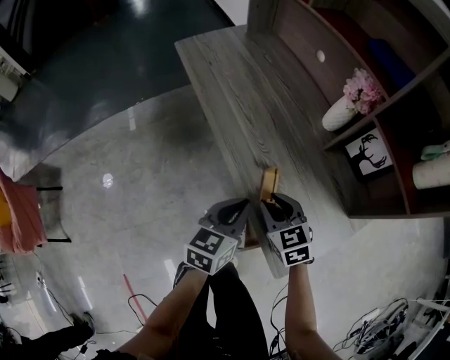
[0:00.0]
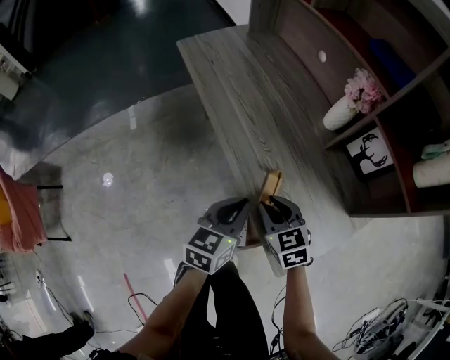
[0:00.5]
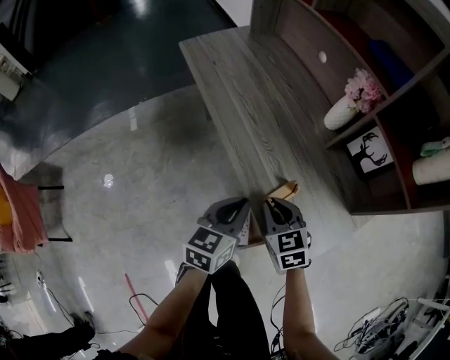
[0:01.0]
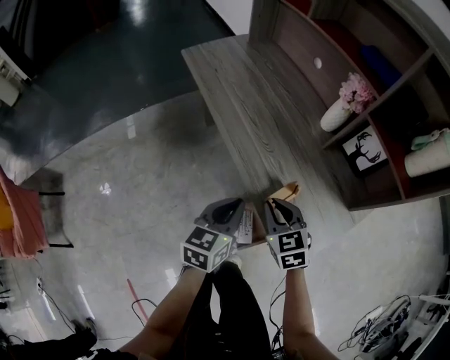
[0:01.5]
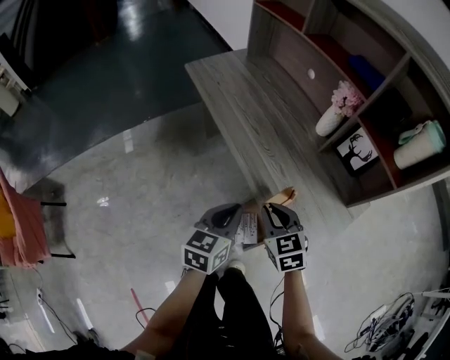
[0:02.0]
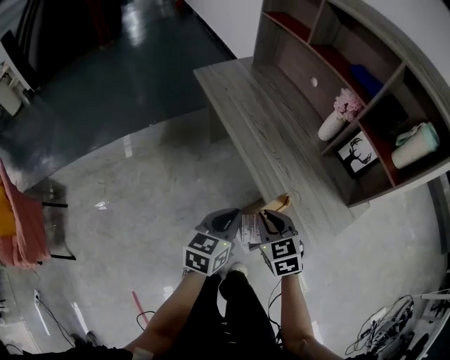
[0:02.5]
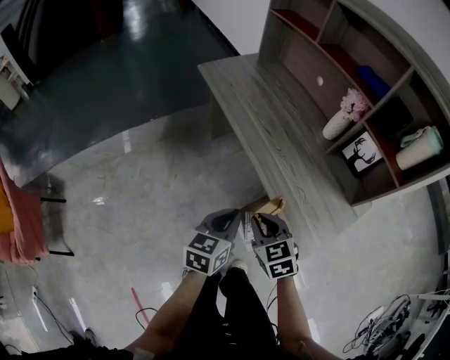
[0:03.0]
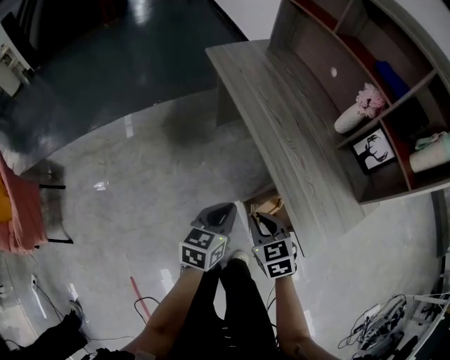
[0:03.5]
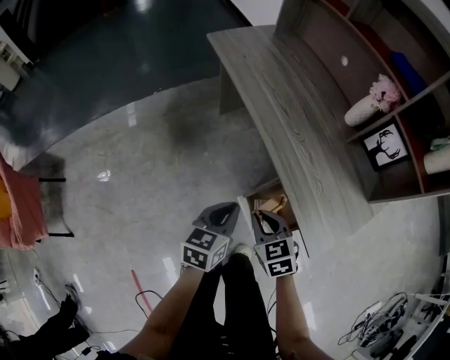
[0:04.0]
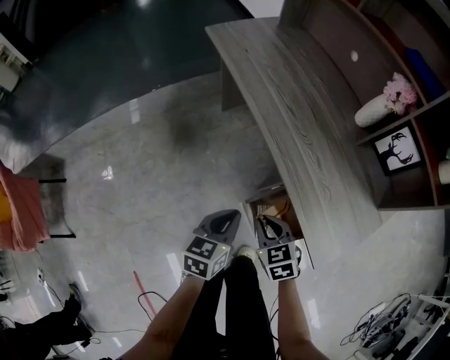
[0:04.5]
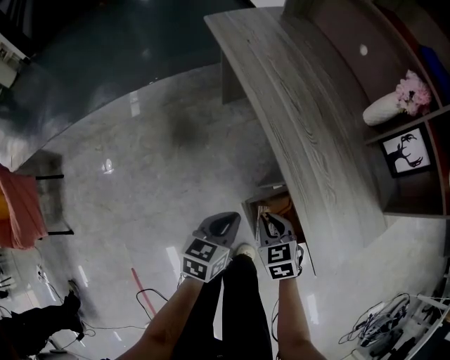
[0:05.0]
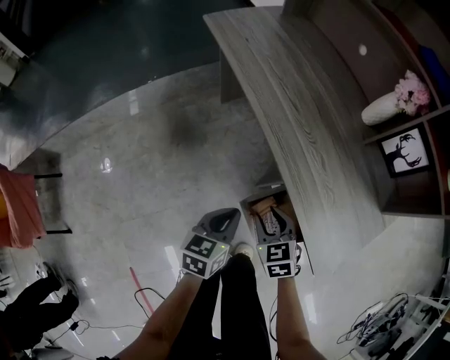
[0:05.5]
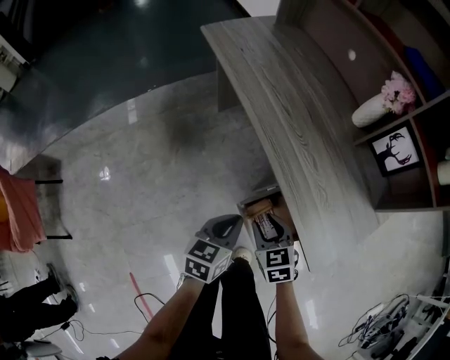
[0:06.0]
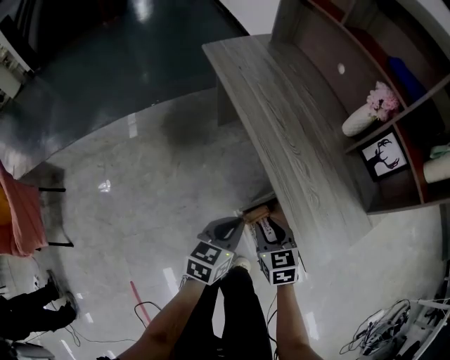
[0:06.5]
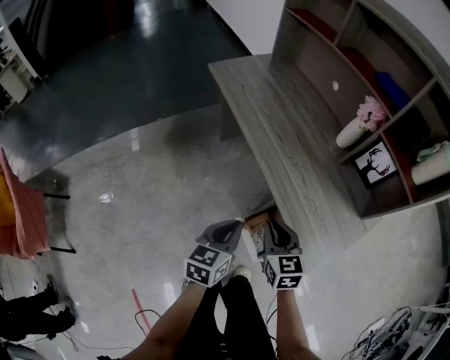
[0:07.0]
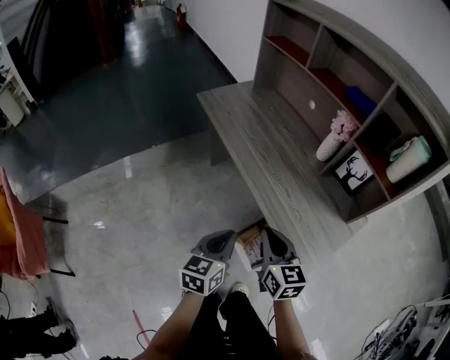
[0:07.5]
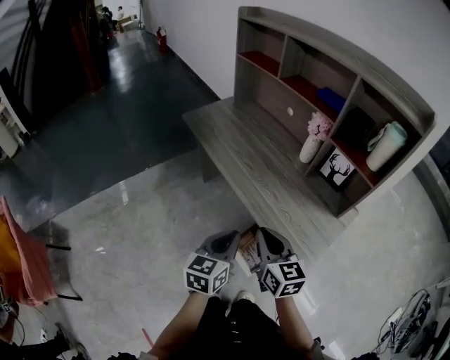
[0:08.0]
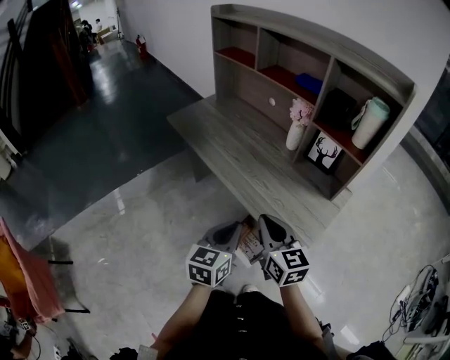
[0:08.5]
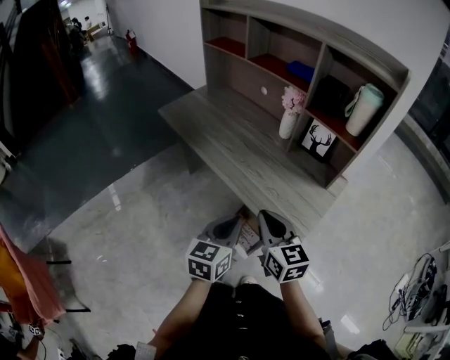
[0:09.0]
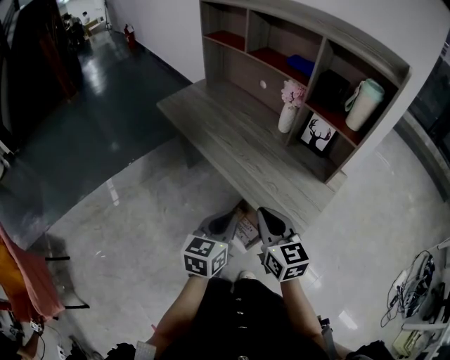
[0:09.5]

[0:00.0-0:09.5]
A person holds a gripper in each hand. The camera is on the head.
0:00.0 to 0:02.0: The right gripper travels upward and backward by some 10 cm, while the left gripper is displaced to the left and backward by about 10 cm.
0:02.0 to 0:04.0: The right gripper is displaced to the left, downward and backward by roughly 15 cm. The left gripper is displaced downward and to the left by roughly 10 cm.
0:04.0 to 0:05.5: Both grippers travel together downward, some 5 cm. The right gripper opens.
0:05.5 to 0:07.5: The grippers both shift upward by some 20 cm. The right gripper changes its angle by about 30 degrees, and closes.
0:07.5 to 0:09.5: The right gripper shifts by roughly 10 cm. The left gripper shifts roughly 5 cm to the right.

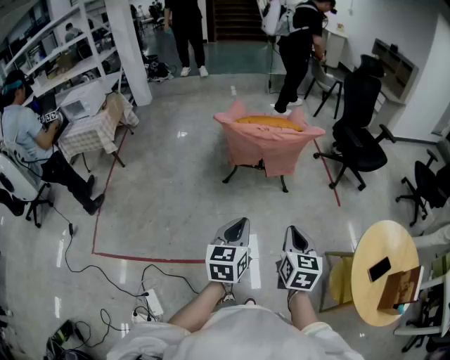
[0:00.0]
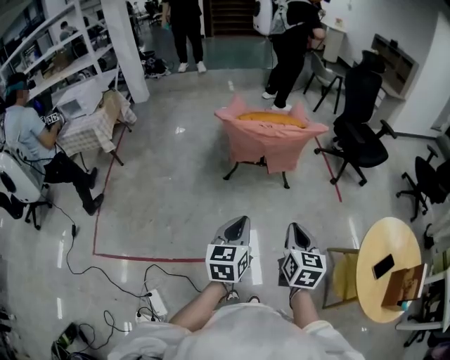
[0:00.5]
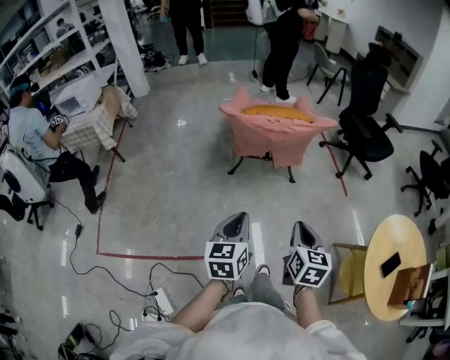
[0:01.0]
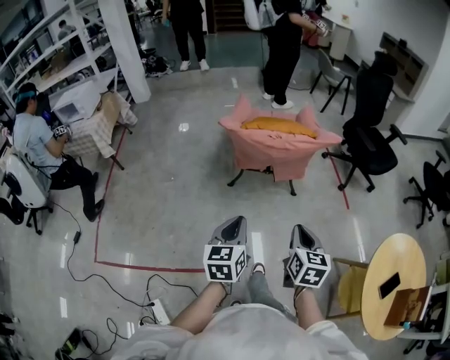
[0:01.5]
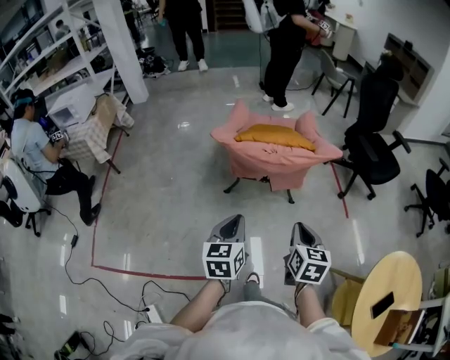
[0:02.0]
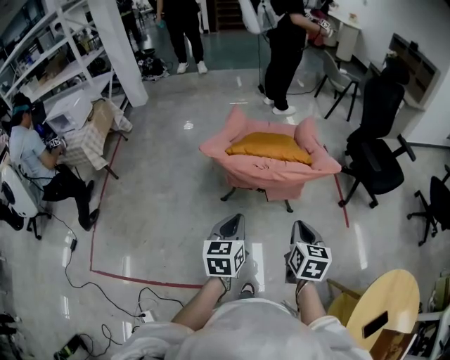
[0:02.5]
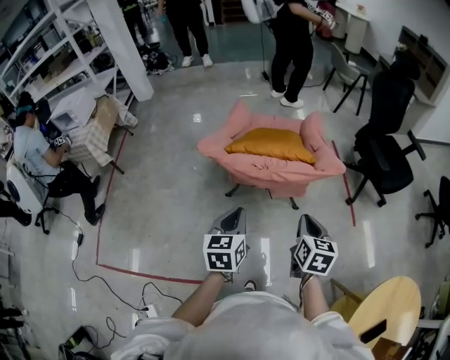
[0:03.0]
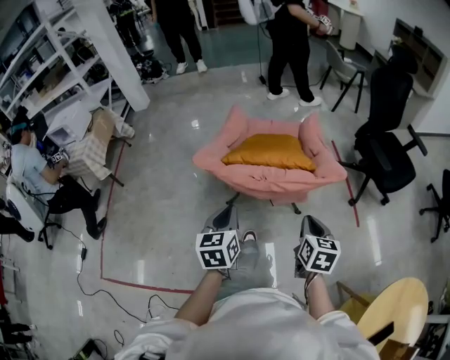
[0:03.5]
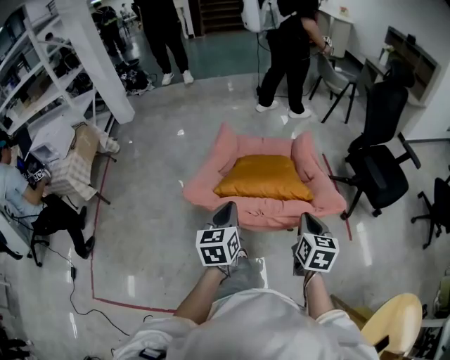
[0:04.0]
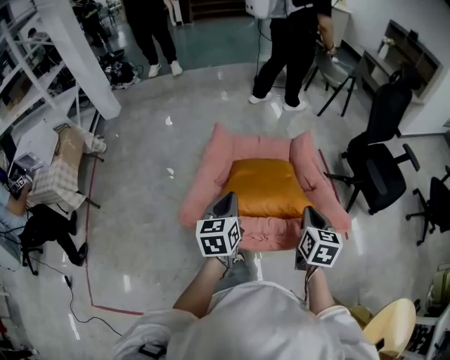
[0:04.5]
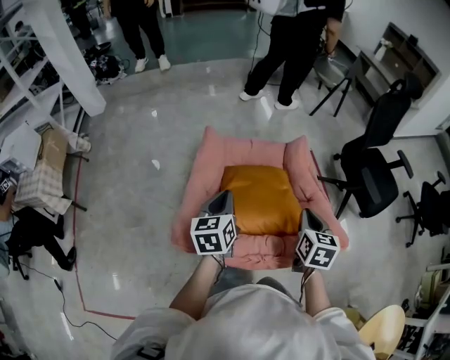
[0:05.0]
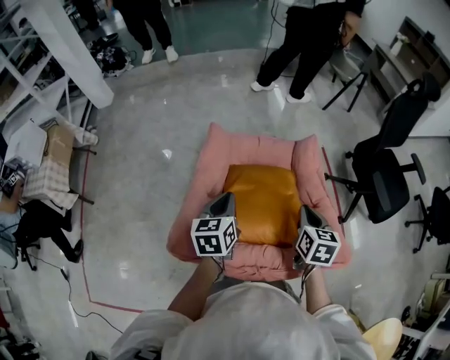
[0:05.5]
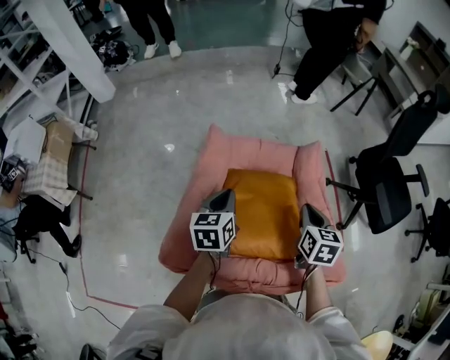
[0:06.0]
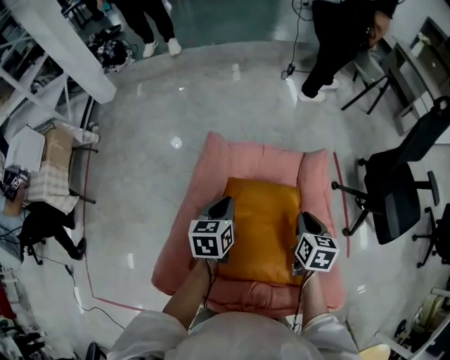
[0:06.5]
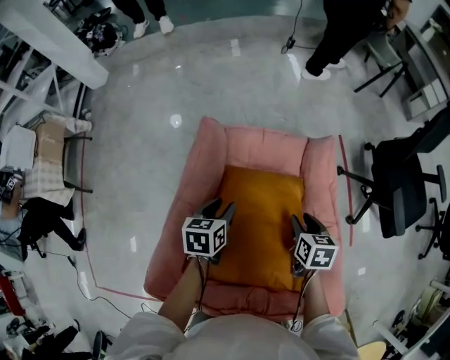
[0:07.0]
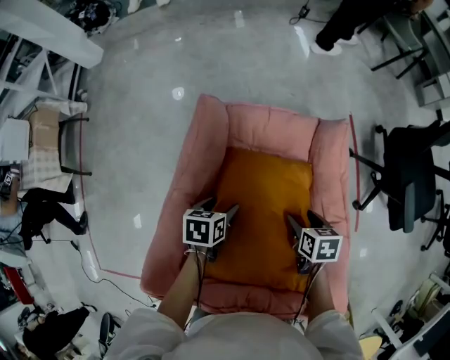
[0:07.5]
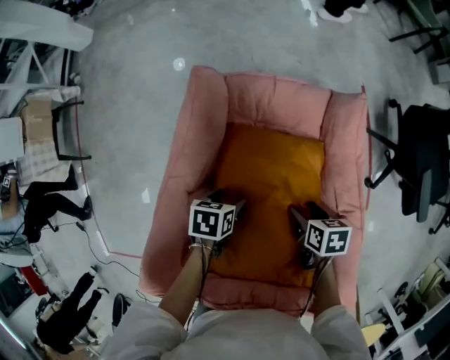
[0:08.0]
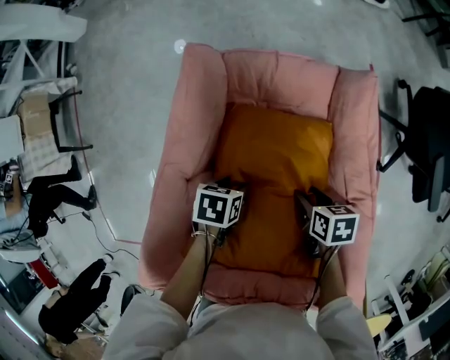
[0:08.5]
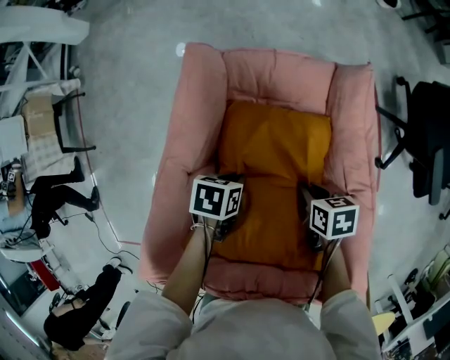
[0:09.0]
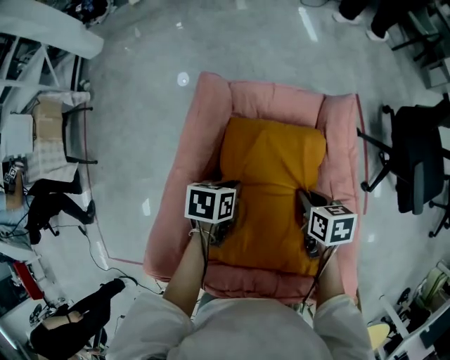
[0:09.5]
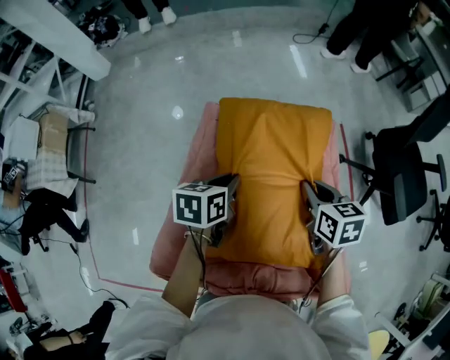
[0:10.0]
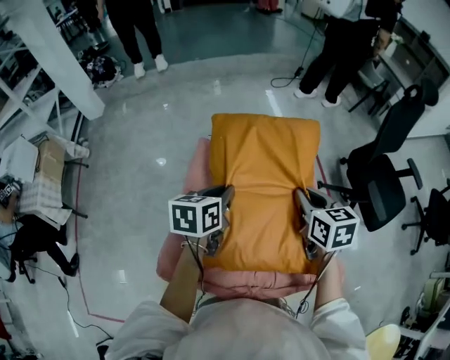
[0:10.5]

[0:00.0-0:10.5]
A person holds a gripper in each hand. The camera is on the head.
0:00.0 to 0:02.0: The two grippers go approximately 20 cm forward.
0:02.0 to 0:04.0: The two grippers go approximately 30 cm forward.
0:04.0 to 0:06.5: Both grippers travel together forward, some 35 cm.
0:06.5 to 0:08.5: The two grippers go approximately 20 cm downward. The left gripper points its fingers roughly 30 degrees further downward, and opens its fingers; the right gripper swivels some 40 degrees, and opens up.
0:08.5 to 0:10.5: Both grippers travel together upward, some 35 cm. The right gripper changes its angle by approximately 40 degrees, and closes, while the left gripper angles its fingers upward, by approximately 40 degrees, and closes its fingers.

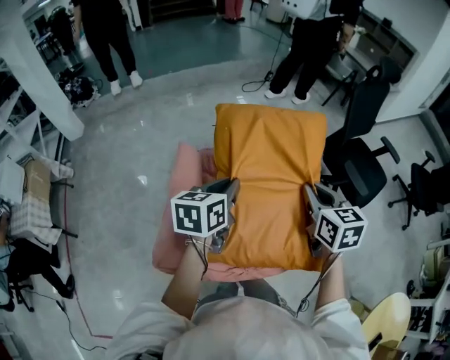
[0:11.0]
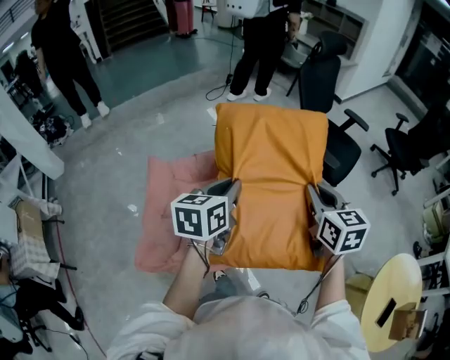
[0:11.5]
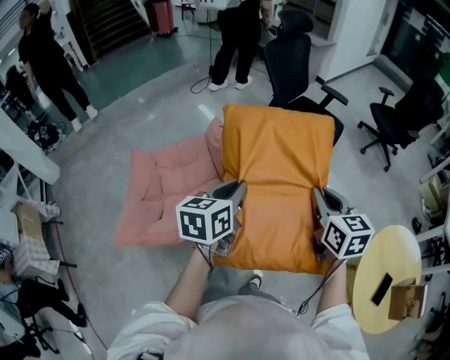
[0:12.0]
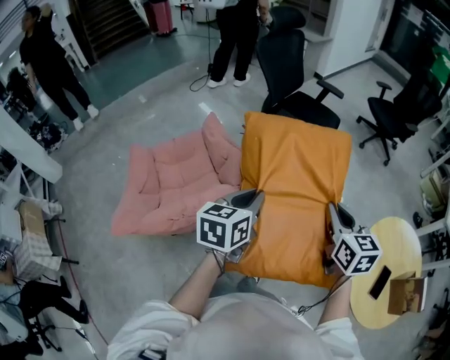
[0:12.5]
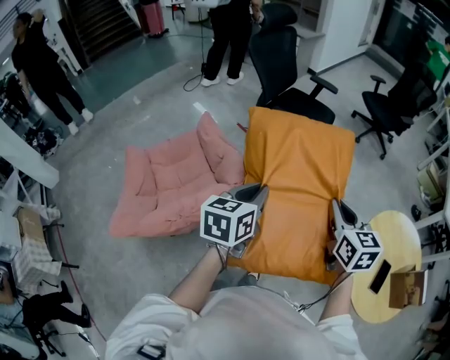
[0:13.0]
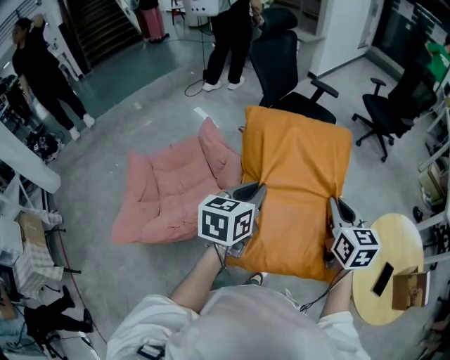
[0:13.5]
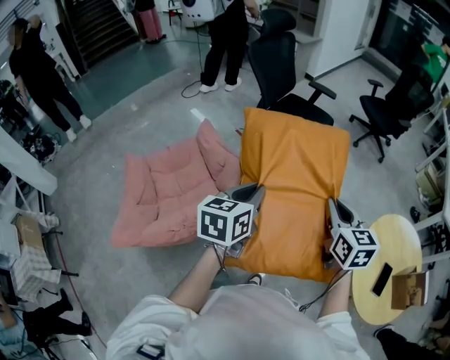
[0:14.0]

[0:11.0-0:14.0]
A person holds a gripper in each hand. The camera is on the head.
0:11.0 to 0:12.5: Both grippers are carried to the right and backward, some 40 cm. The left gripper changes its angle by some 30 degrees, while the right gripper swivels some 30 degrees.
0:12.5 to 0:14.0: The grippers stay close to where they were, moving slightly.

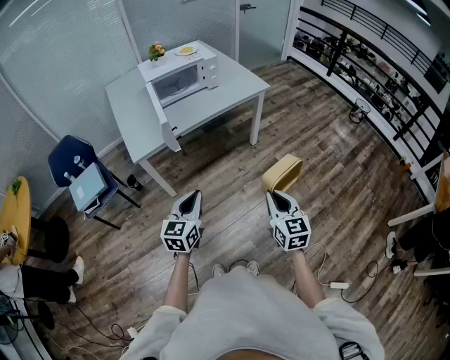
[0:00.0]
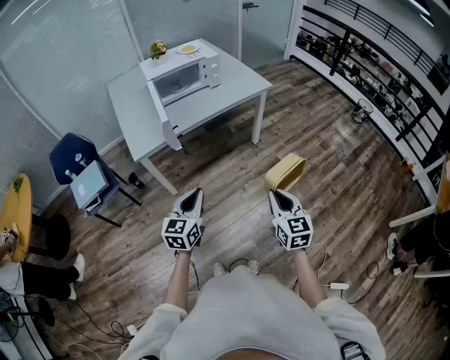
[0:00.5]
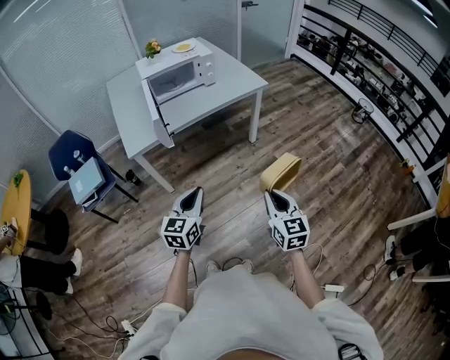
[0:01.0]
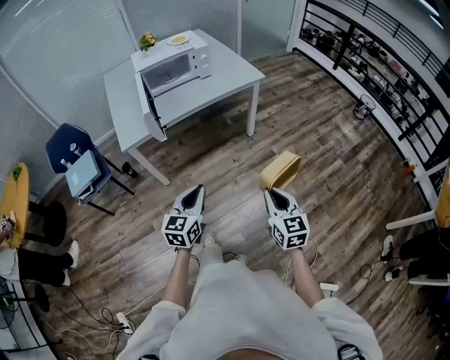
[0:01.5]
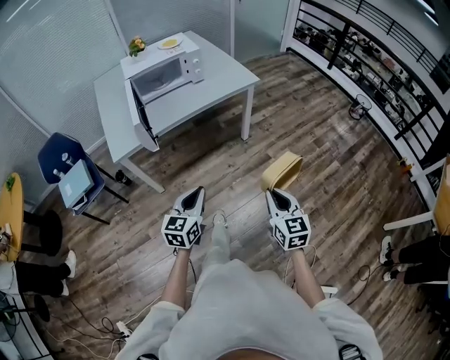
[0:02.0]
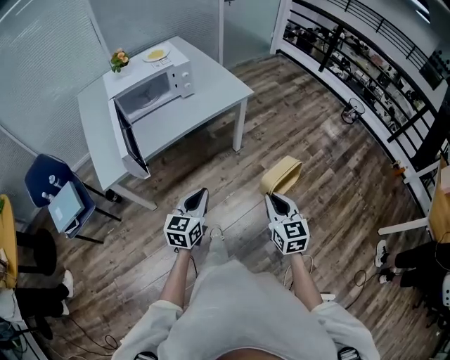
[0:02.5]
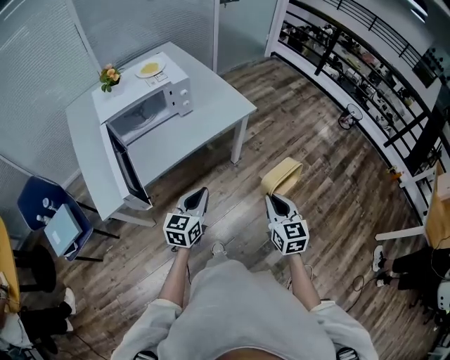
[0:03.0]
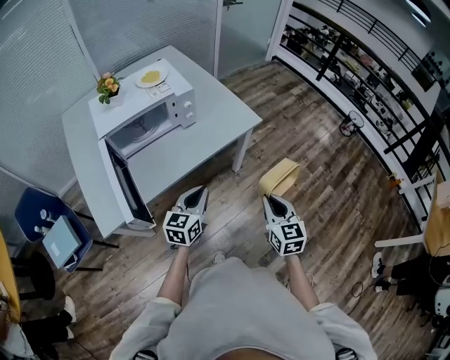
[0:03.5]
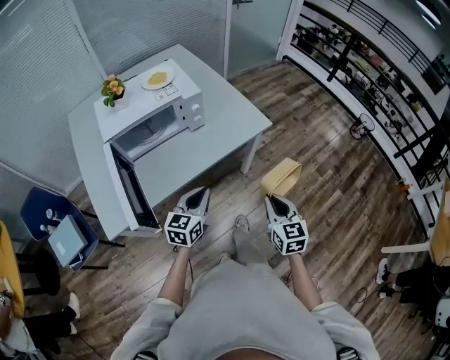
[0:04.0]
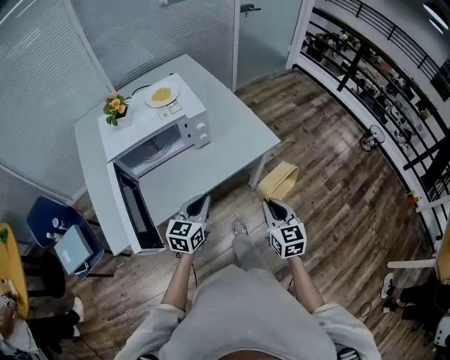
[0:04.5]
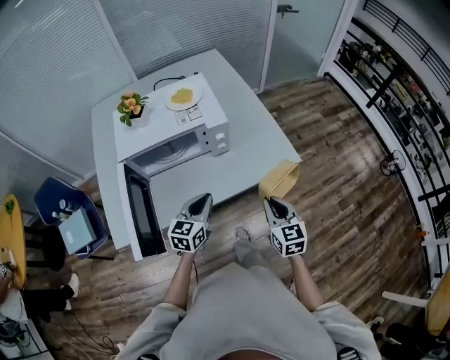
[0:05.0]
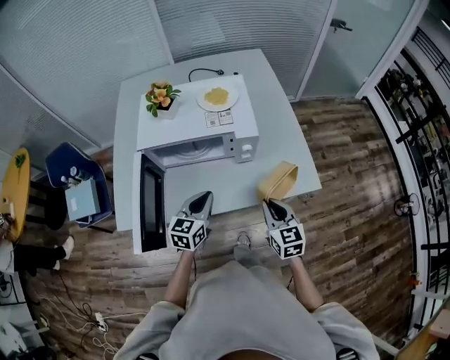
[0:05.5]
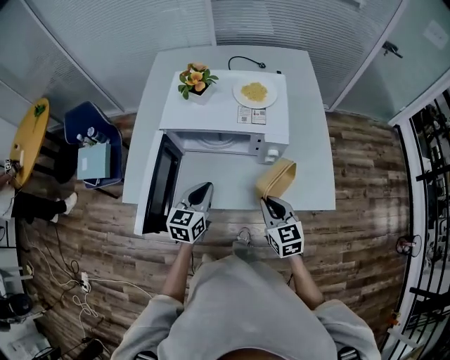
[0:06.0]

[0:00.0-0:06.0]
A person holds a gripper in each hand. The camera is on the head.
0:00.0 to 0:02.0: The grippers both shift to the right and forward by about 10 cm.
0:02.0 to 0:04.0: The grippers both shift forward by some 35 cm.
0:04.0 to 0:06.0: The right gripper moves about 30 cm, and turns by approximately 50 degrees; the left gripper changes place by about 20 cm, and swivels roughly 40 degrees.
